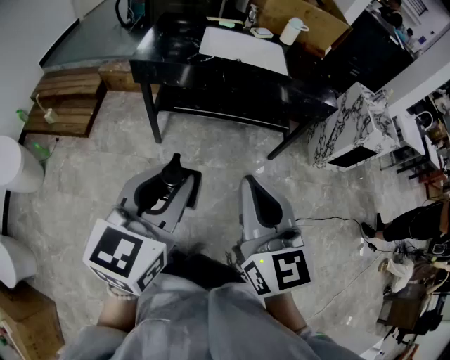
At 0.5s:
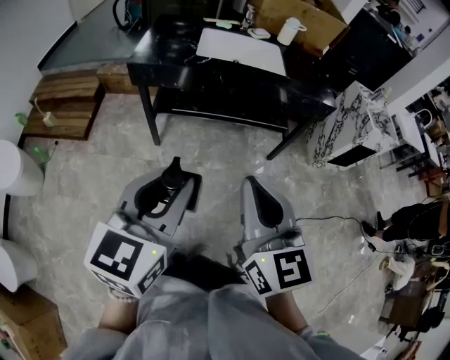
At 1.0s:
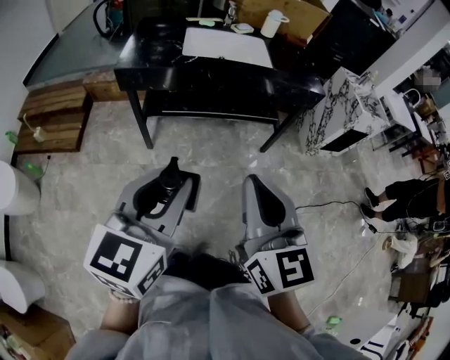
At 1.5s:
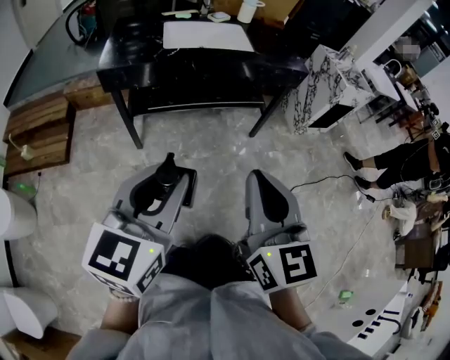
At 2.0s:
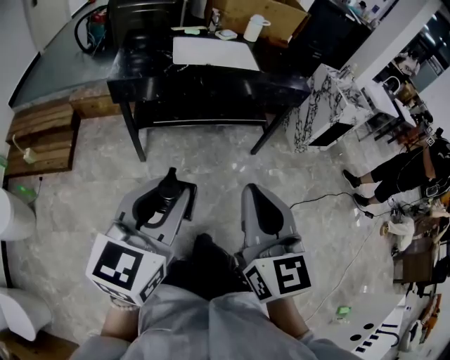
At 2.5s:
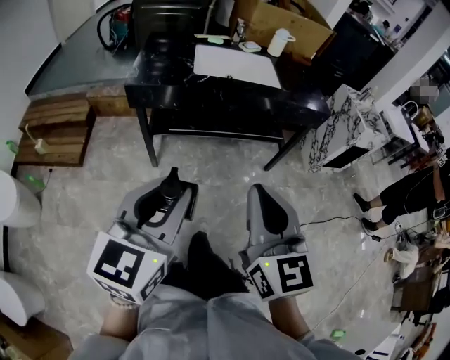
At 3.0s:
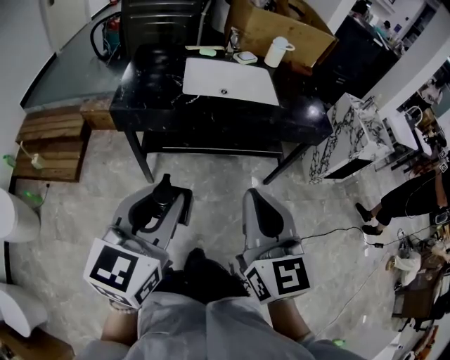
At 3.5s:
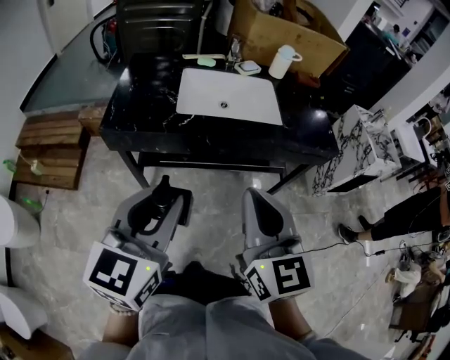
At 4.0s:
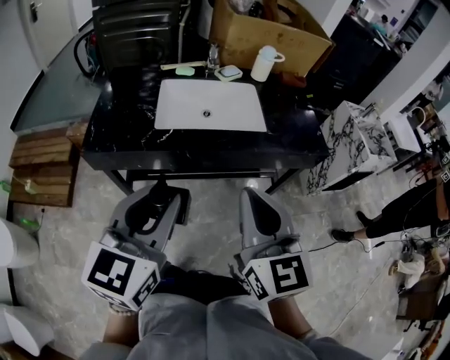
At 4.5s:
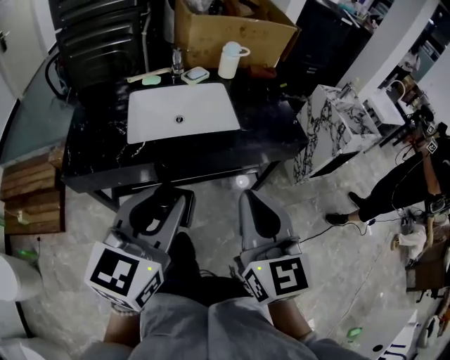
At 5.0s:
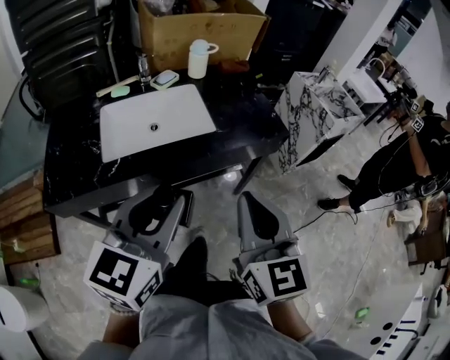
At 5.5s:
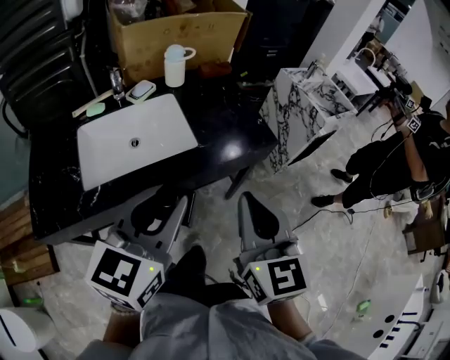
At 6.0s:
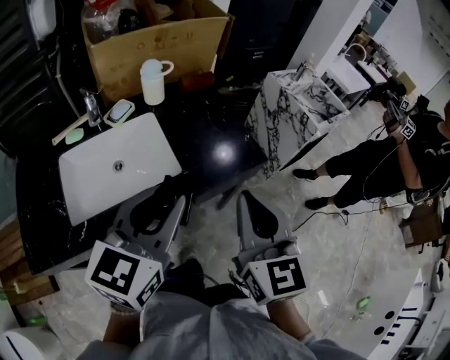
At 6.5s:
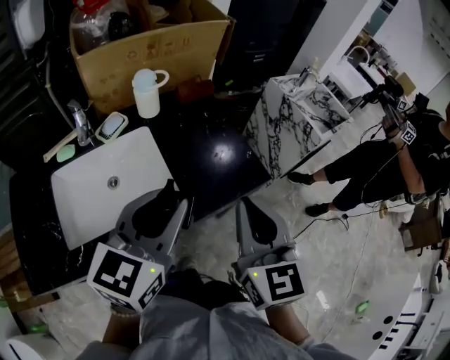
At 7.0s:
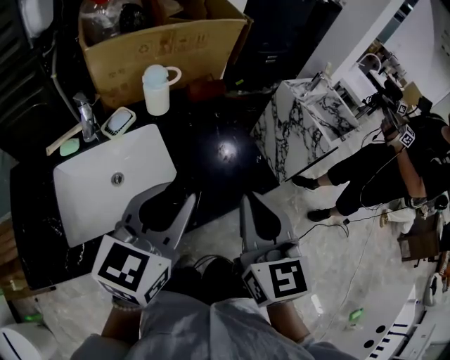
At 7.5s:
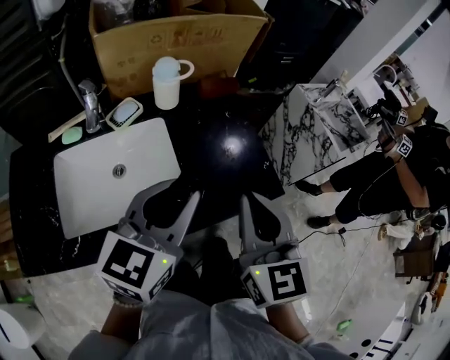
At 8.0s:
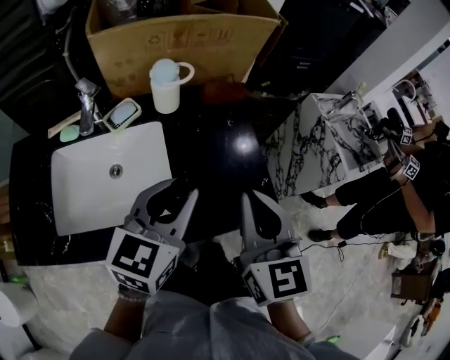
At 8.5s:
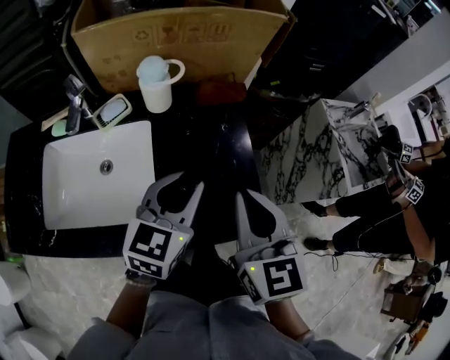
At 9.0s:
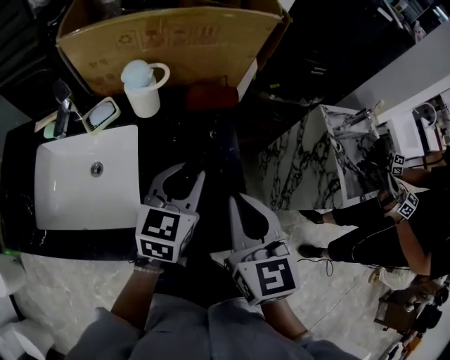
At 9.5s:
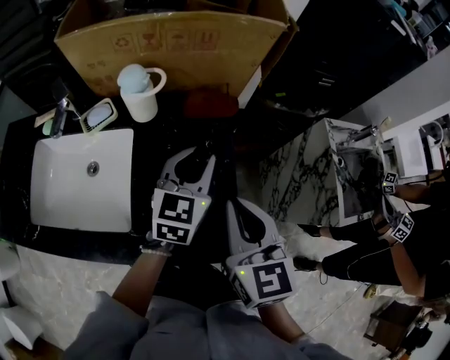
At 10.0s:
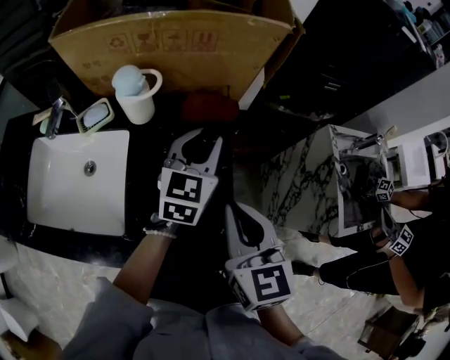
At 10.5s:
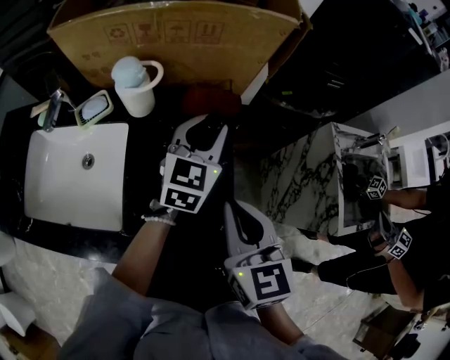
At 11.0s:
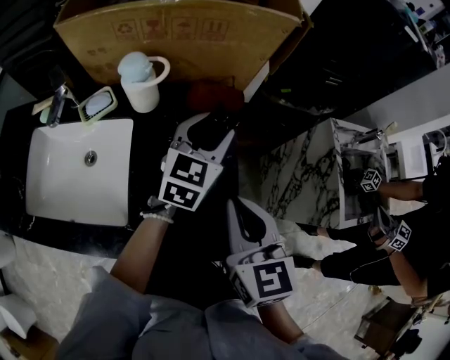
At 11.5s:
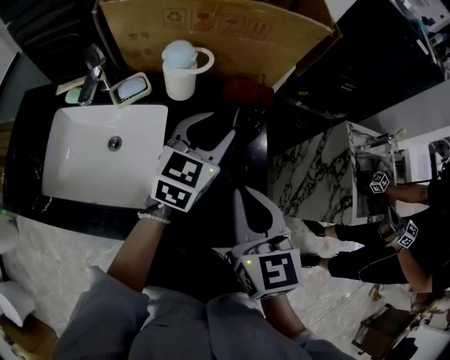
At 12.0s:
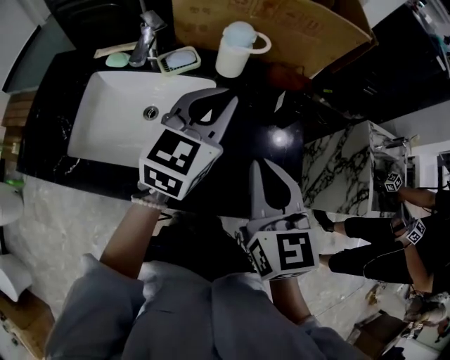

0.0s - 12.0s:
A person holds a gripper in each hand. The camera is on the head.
0.0s - 2.0s: The right gripper ends up roughly 5 cm from where it was. Meanwhile the left gripper shifts approximately 5 cm to the left.
2.0s - 4.0s: Both grippers move forward, about 35 cm.
4.0s - 6.0s: The left gripper changes place by roughly 35 cm, and rotates roughly 30 degrees, while the right gripper ends up some 30 cm from where it was, and turns by approximately 30 degrees.
6.0s - 8.0s: The grippers both shift forward by roughly 20 cm.
8.0s - 10.0s: The right gripper heads forward, to the right and downward, covering about 20 cm, and rotates some 20 degrees. The left gripper travels forward and to the right by approximately 30 cm.
10.0s - 12.0s: The right gripper is displaced to the left and backward by roughly 20 cm. Meanwhile the left gripper heads to the left, backward and upward, covering approximately 25 cm.

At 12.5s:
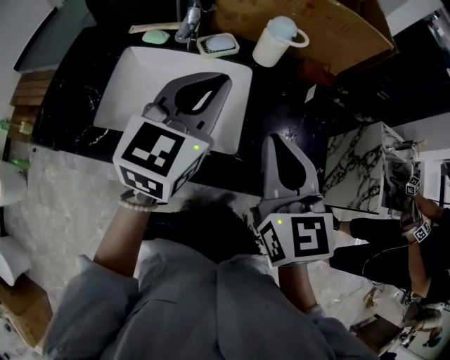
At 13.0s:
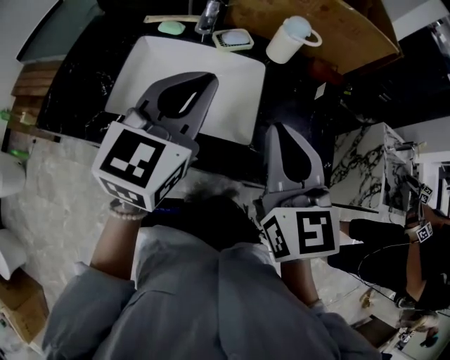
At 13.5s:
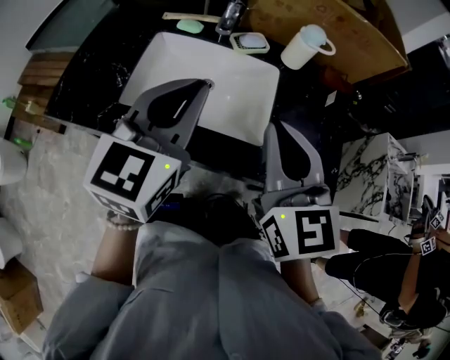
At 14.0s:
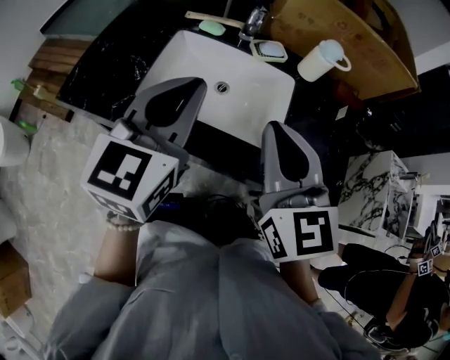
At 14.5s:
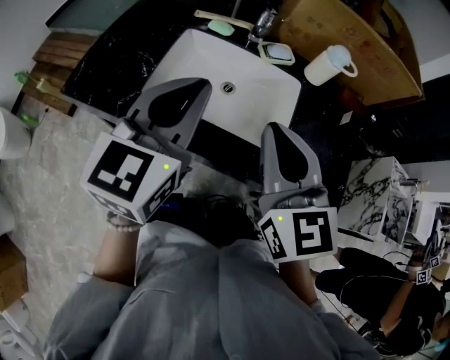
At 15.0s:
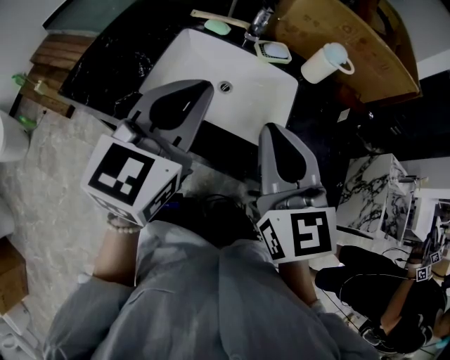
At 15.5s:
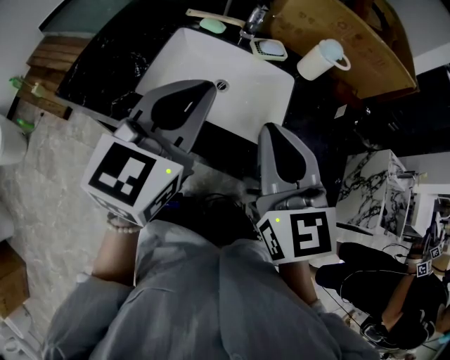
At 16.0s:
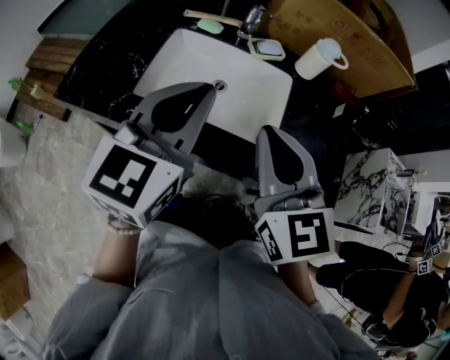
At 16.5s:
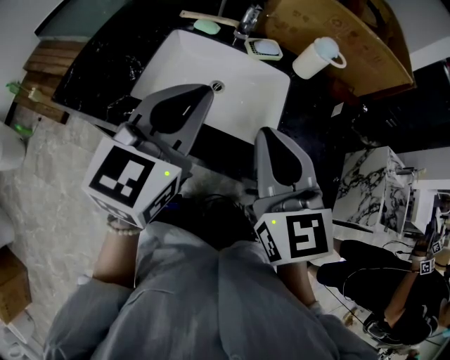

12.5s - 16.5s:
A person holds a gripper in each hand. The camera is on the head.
12.5s - 14.5s: The left gripper shifts some 20 cm to the left and backward. The right gripper travels to the left by some 15 cm.
14.5s - 16.5s: There are only small adjustments of the grippers.

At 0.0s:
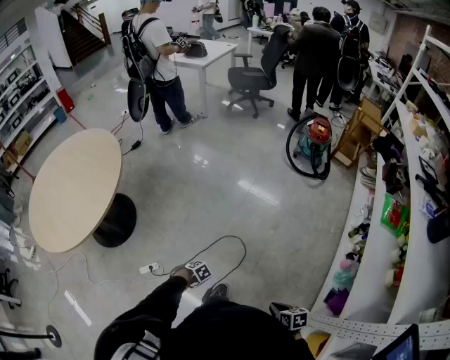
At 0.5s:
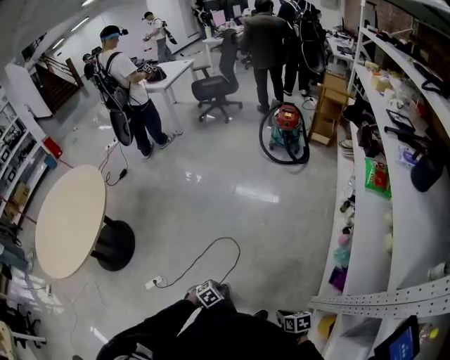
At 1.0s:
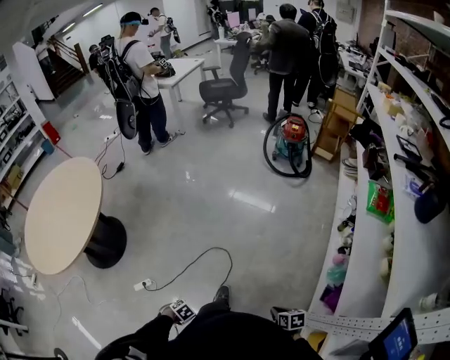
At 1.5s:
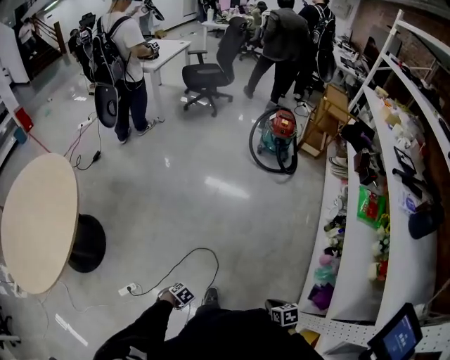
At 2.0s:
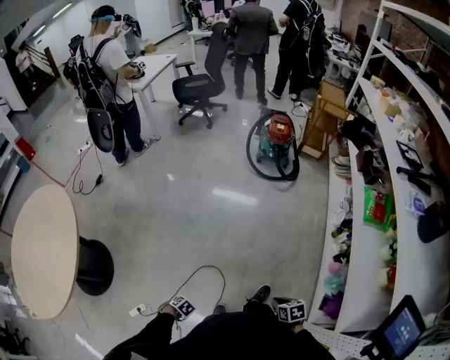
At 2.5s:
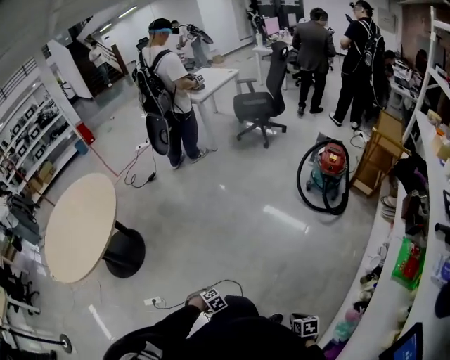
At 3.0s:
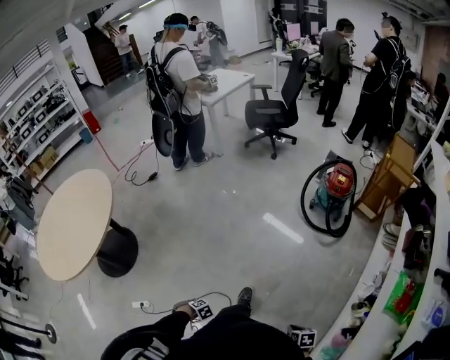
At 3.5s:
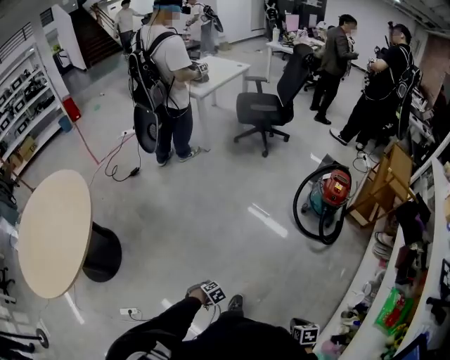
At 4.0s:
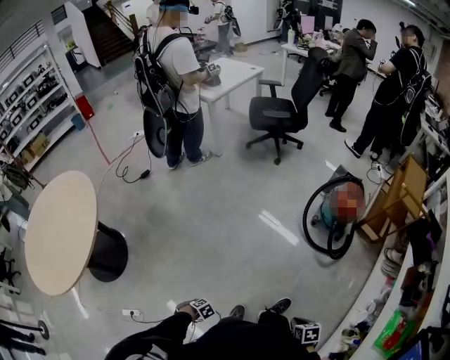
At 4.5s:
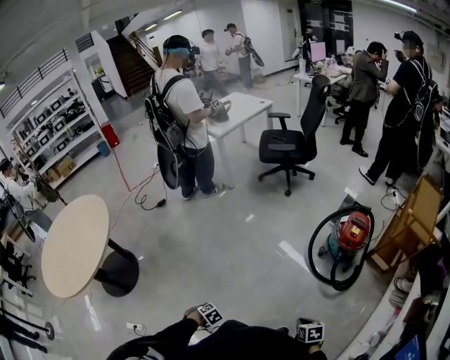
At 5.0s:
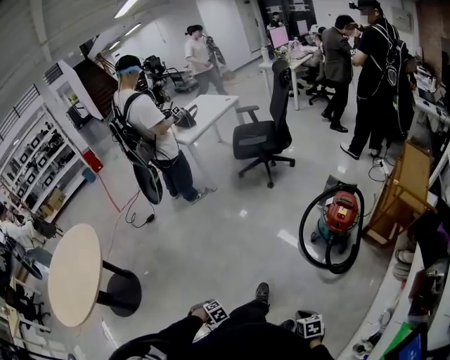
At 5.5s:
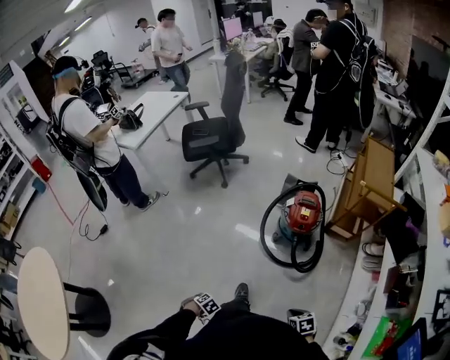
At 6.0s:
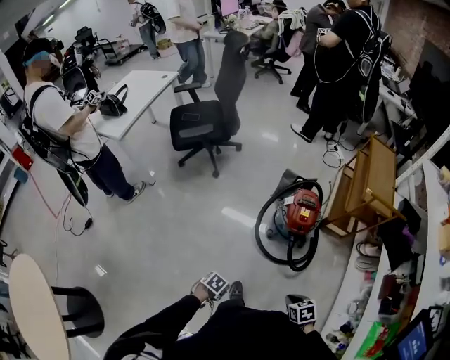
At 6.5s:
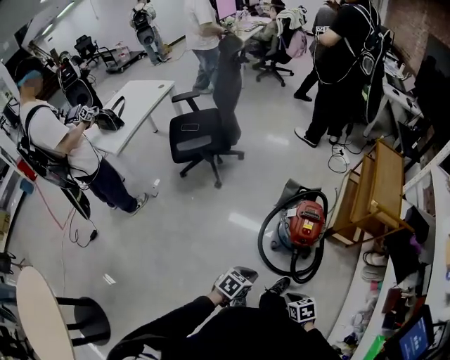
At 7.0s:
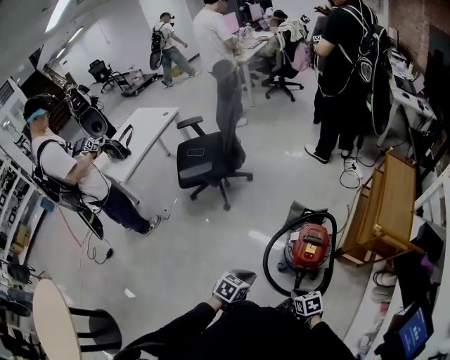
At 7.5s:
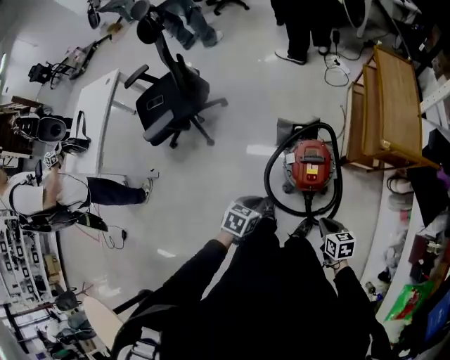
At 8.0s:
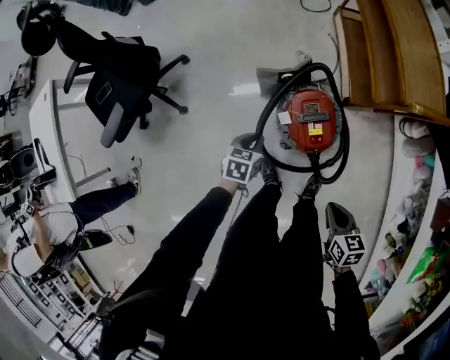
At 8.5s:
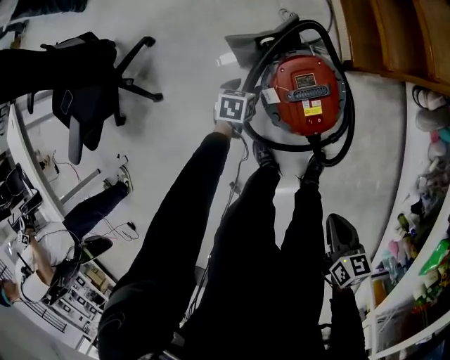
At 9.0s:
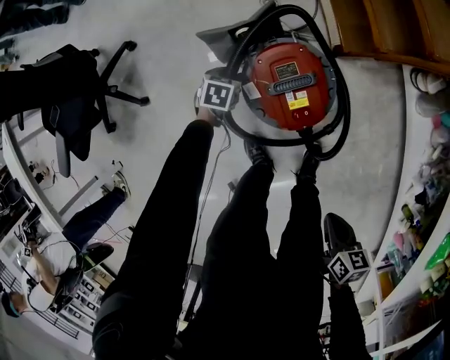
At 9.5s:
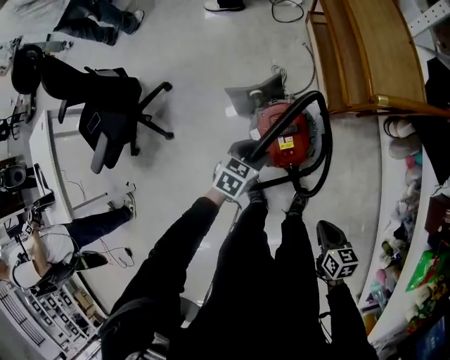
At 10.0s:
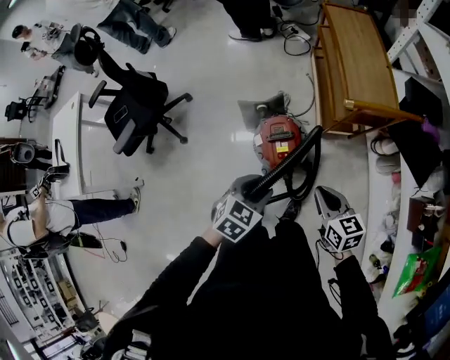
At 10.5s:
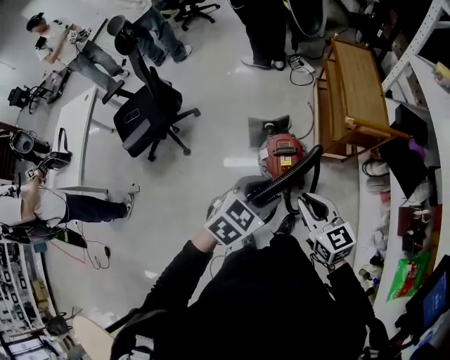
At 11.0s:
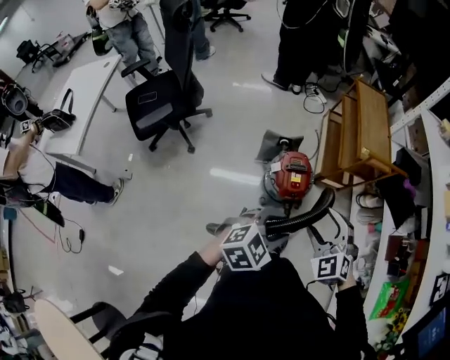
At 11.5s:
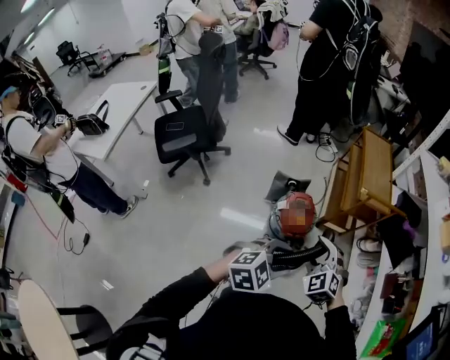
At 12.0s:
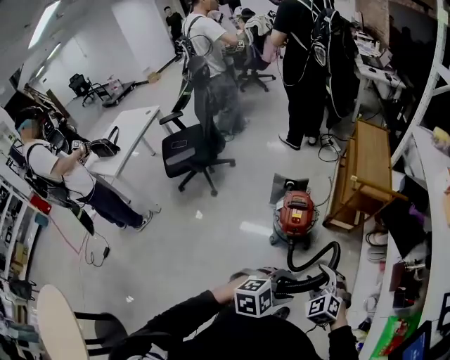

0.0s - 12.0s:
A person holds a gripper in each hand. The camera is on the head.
0.0s - 2.0s: The left gripper travels upward and back again, approximately 5 cm each way. The right gripper shifts by about 25 cm.
2.0s - 4.0s: The left gripper travels upward and back again, roughly 5 cm each way. The right gripper moves about 50 cm.
4.0s - 6.0s: Both grippers are carried approximately 50 cm. The left gripper turns by some 20 degrees.
6.0s - 8.0s: The right gripper moves about 40 cm, and rotates approximately 40 degrees; the left gripper changes place by some 60 cm.
8.0s - 10.0s: The right gripper goes some 20 cm upward and to the right, and swivels about 20 degrees. The left gripper goes some 35 cm upward, to the right and backward, turns by roughly 30 degrees, and opens its fingers.
10.0s - 12.0s: The left gripper goes about 40 cm backward, to the right and upward, and turns by approximately 30 degrees; the right gripper travels backward by about 25 cm, rolls counterclockwise, seen from behind, by about 60 degrees, and opens up.
